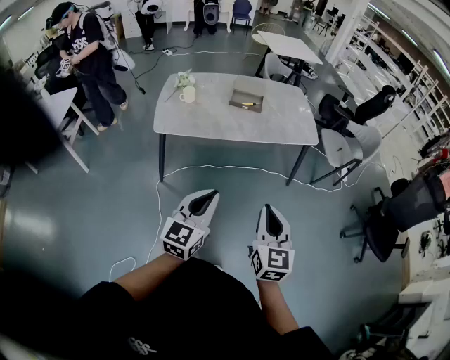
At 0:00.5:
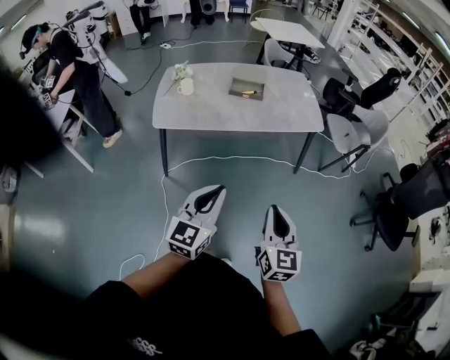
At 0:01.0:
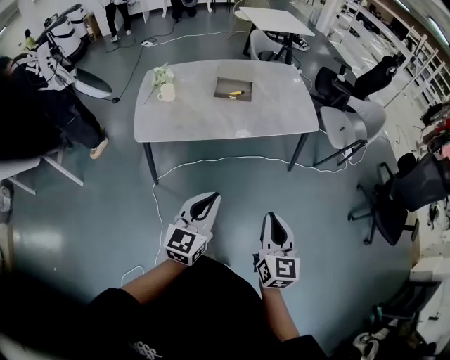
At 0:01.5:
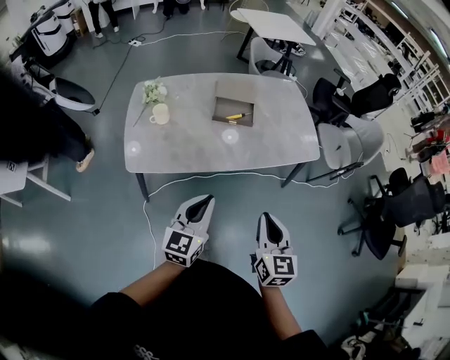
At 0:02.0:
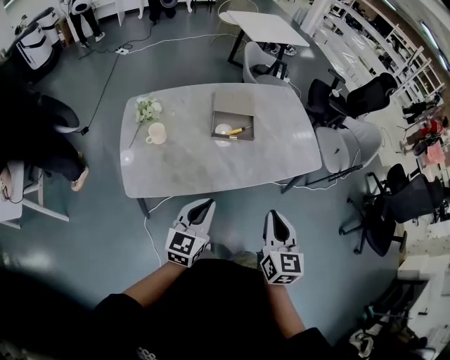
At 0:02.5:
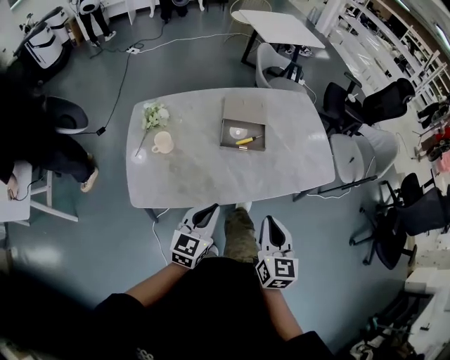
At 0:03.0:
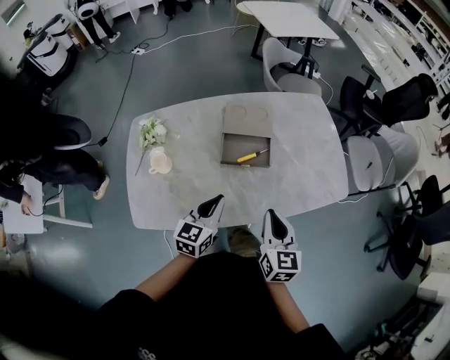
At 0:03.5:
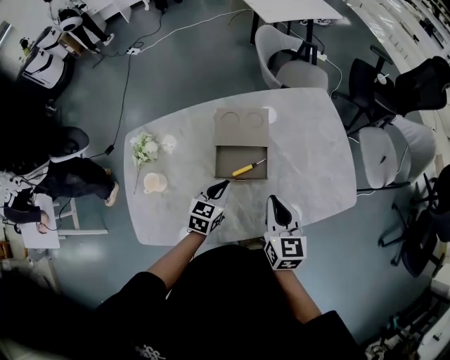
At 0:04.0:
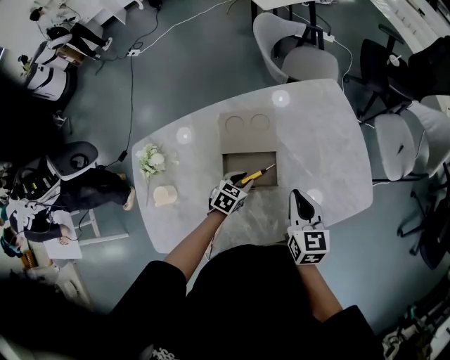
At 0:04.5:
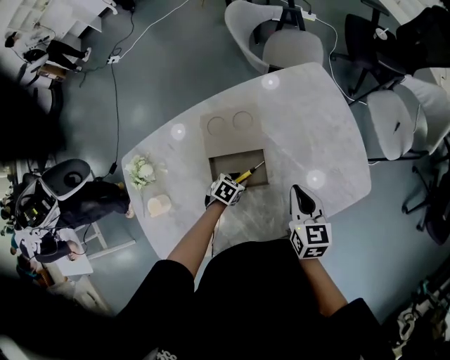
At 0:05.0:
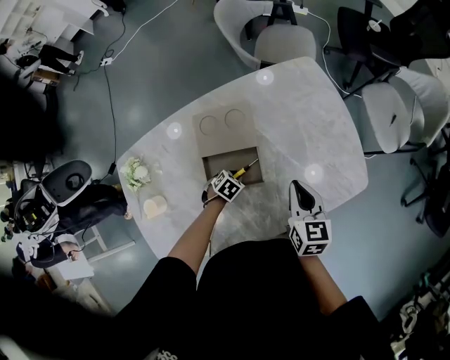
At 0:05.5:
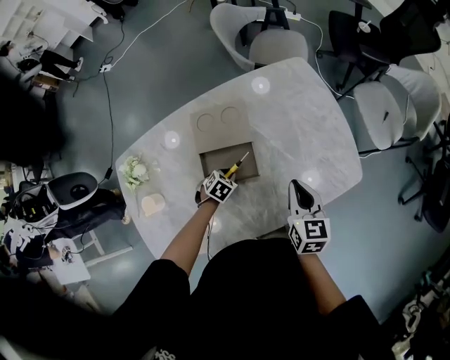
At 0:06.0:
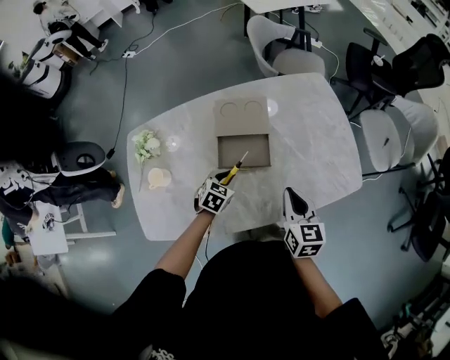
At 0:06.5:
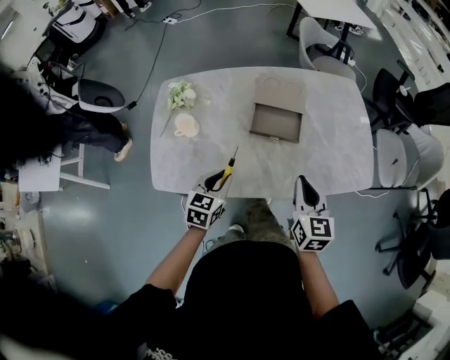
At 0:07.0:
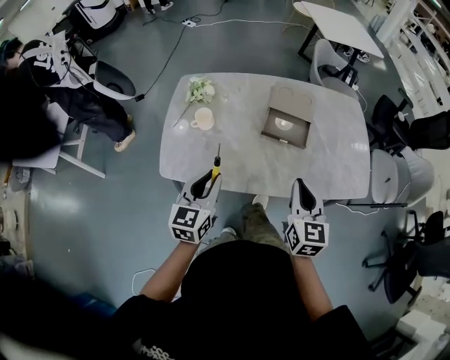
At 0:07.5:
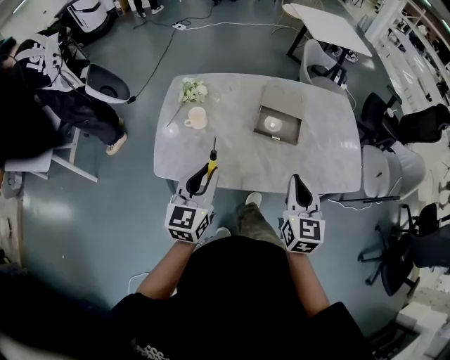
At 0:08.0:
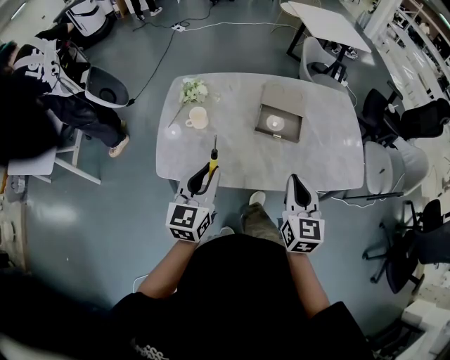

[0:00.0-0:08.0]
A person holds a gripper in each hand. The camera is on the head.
0:00.0 to 0:02.0: Both grippers are carried forward, about 40 cm.
0:02.0 to 0:04.0: The two grippers travel together, forward, roughly 50 cm. The left gripper goes roughly 25 cm downward, tips its fingers downward by approximately 40 degrees, and opens.
0:04.0 to 0:06.0: The left gripper goes downward and returns, roughly 10 cm each way. Meanwhile the right gripper moves about 10 cm.
0:06.0 to 0:08.0: The left gripper shifts some 40 cm backward, upward and to the left, and angles its fingers upward, by roughly 40 degrees, while the right gripper is displaced backward, to the left and upward by roughly 25 cm.

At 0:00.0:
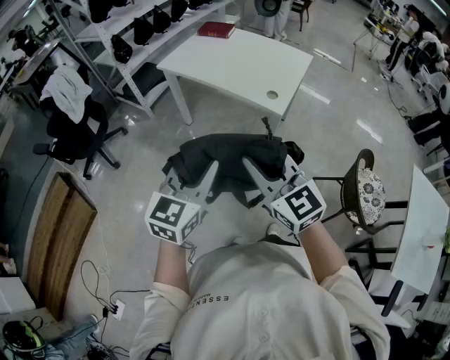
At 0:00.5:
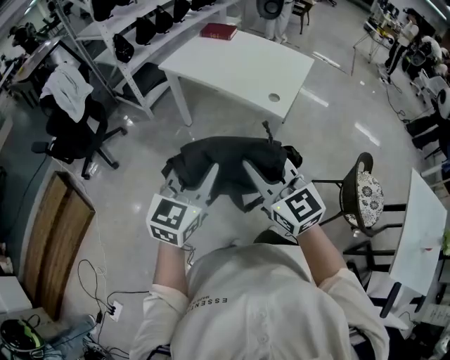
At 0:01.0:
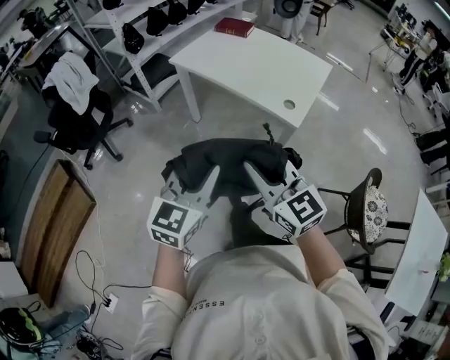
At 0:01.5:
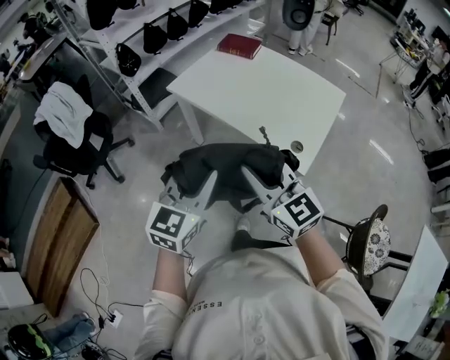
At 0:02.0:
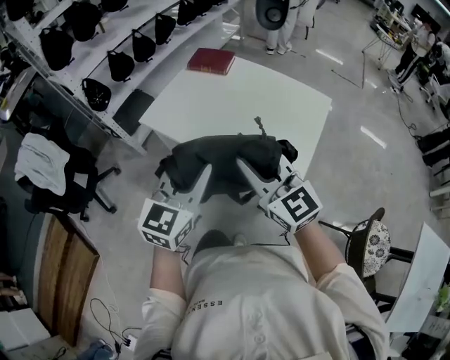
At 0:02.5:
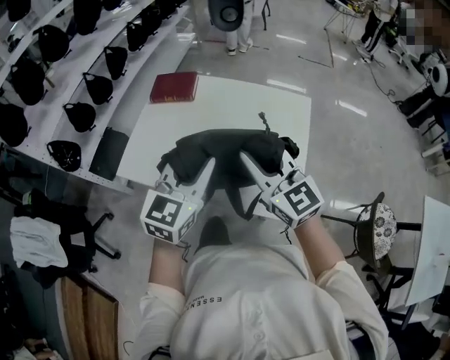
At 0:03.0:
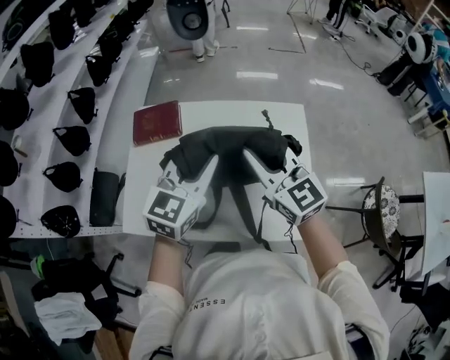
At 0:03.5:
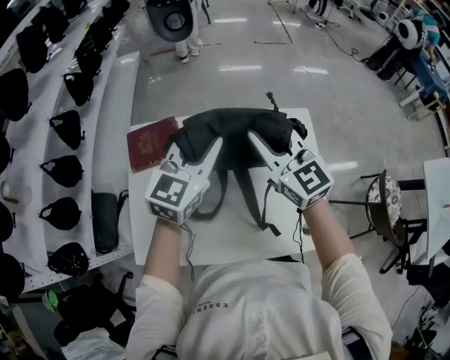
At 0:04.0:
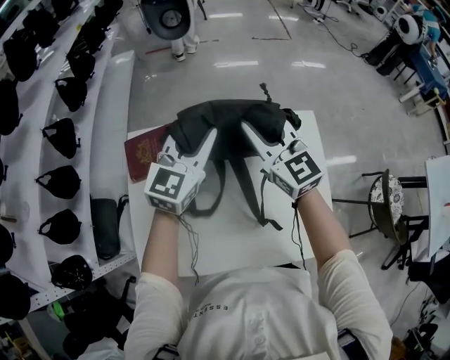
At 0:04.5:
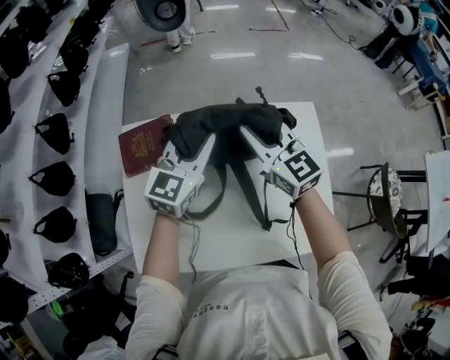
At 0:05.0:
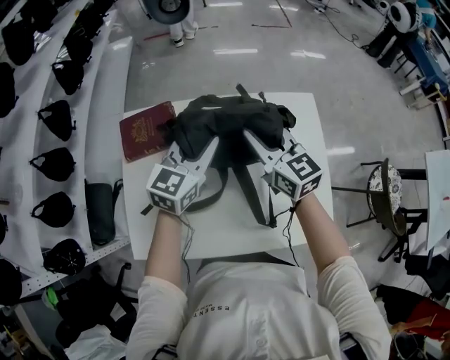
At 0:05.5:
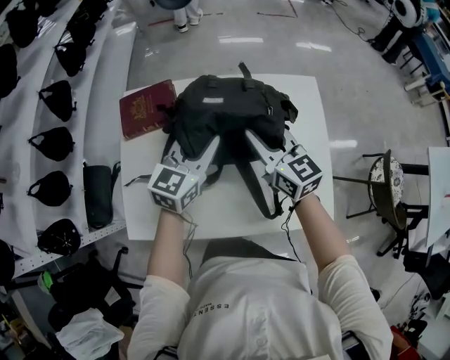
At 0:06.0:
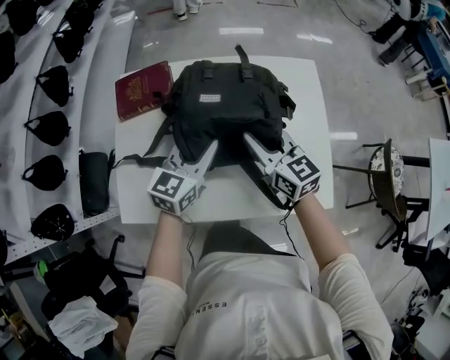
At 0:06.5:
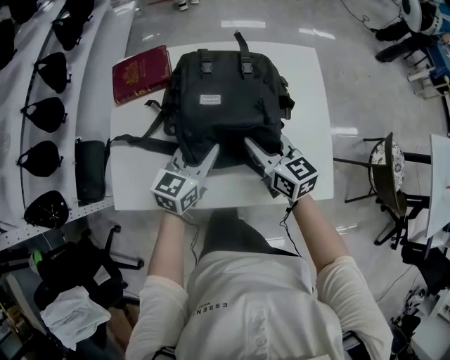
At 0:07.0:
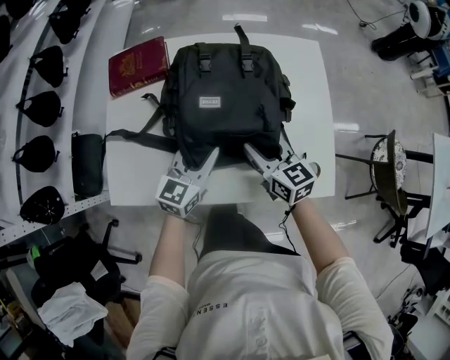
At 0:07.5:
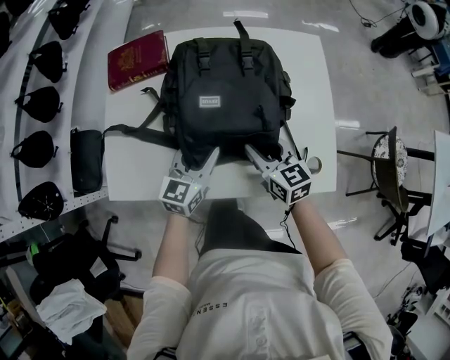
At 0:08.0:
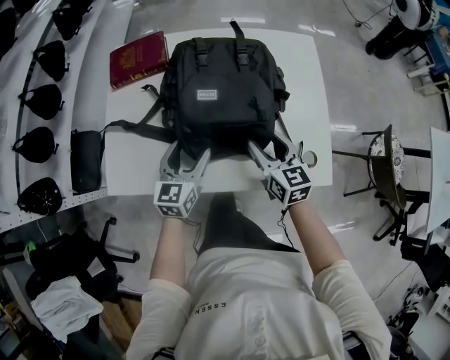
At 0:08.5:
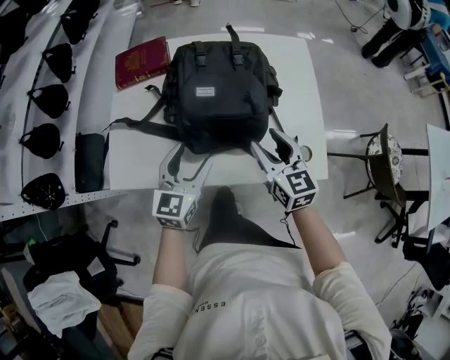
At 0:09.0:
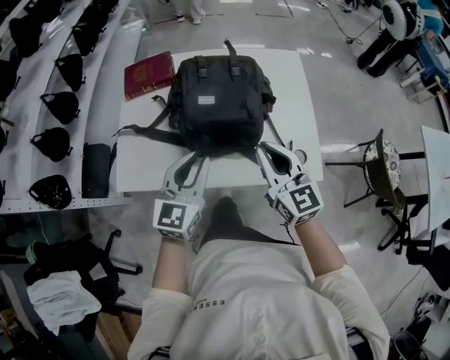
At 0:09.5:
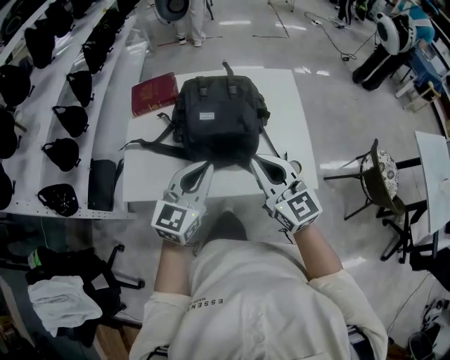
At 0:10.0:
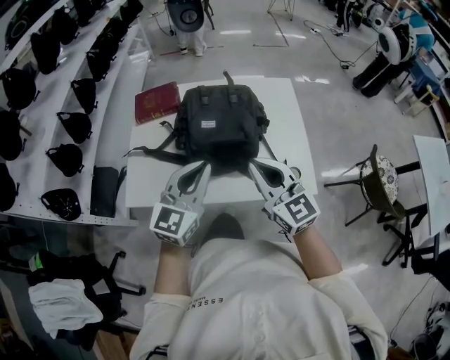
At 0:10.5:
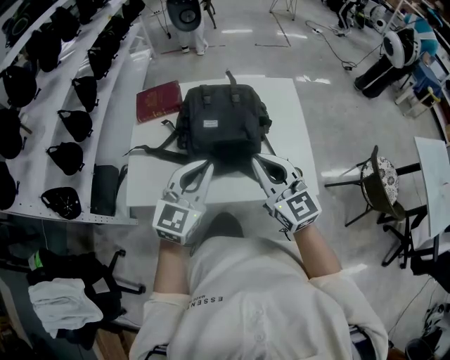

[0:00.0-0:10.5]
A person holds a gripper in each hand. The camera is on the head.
0:00.0 to 0:02.0: The pair of grippers is taken forward, roughly 40 cm.
0:02.0 to 0:04.0: Both grippers are carried some 50 cm. The left gripper swivels some 40 degrees; the right gripper rotates roughly 40 degrees.
0:04.0 to 0:06.5: Both grippers move backward and downward, about 30 cm. The right gripper turns by some 30 degrees. Meanwhile the left gripper turns by approximately 20 degrees.
0:06.5 to 0:08.5: The grippers both shift backward by some 10 cm. The left gripper opens up. Meanwhile the right gripper opens.
0:08.5 to 0:10.5: The left gripper goes about 15 cm upward, and closes up. The right gripper is displaced upward and backward by approximately 15 cm, rotates roughly 20 degrees, and closes up.

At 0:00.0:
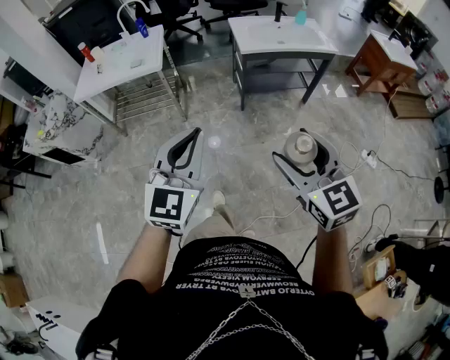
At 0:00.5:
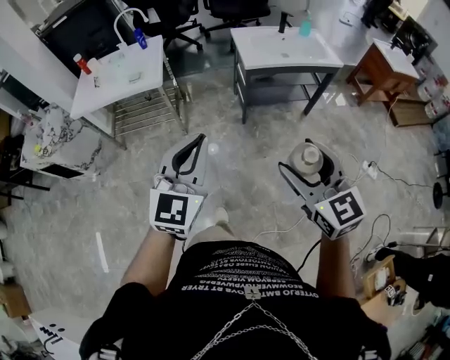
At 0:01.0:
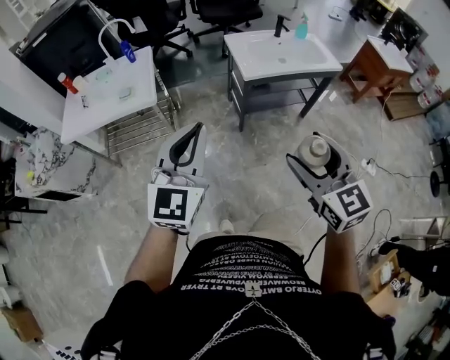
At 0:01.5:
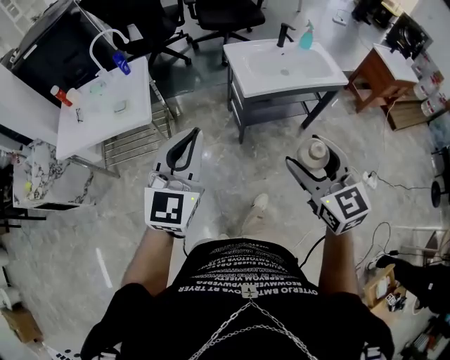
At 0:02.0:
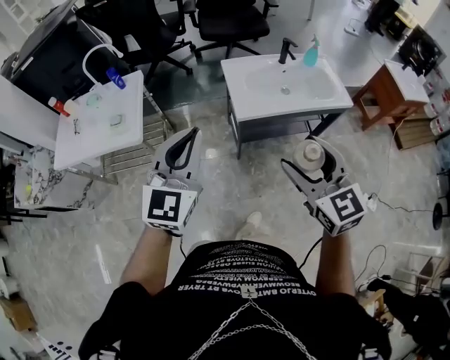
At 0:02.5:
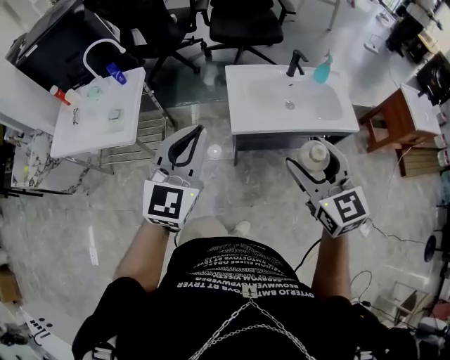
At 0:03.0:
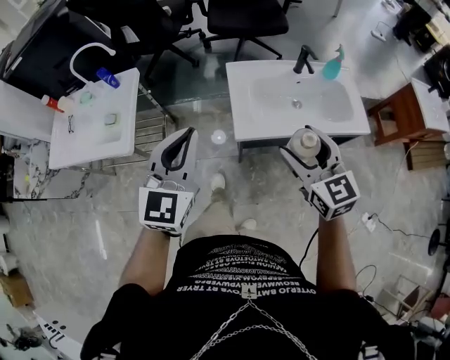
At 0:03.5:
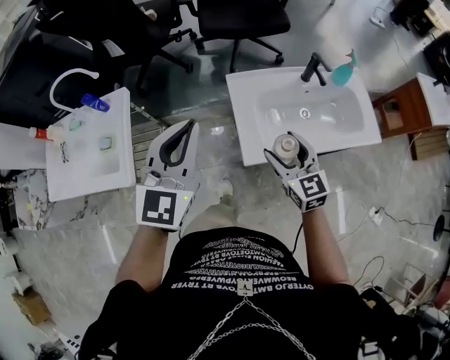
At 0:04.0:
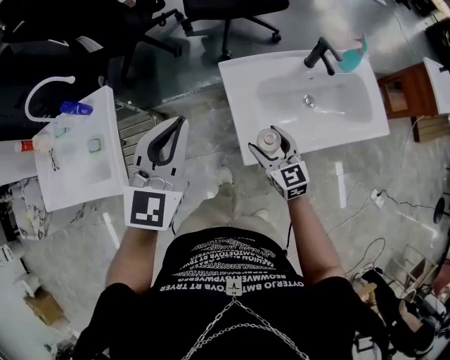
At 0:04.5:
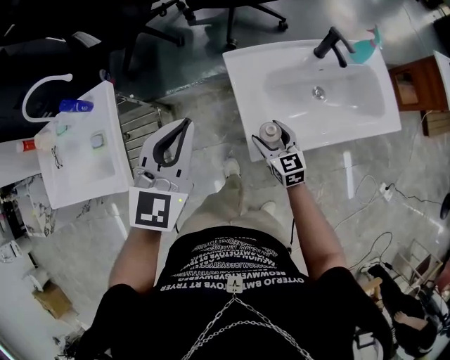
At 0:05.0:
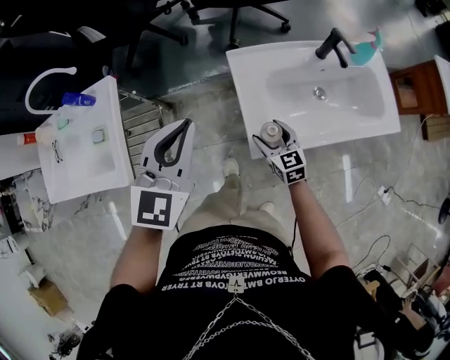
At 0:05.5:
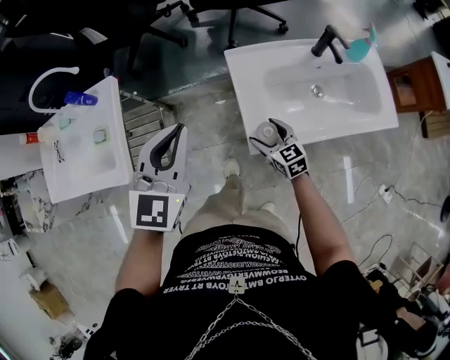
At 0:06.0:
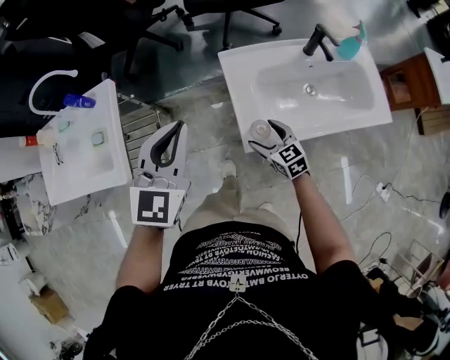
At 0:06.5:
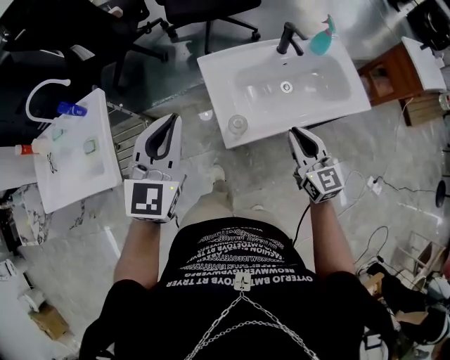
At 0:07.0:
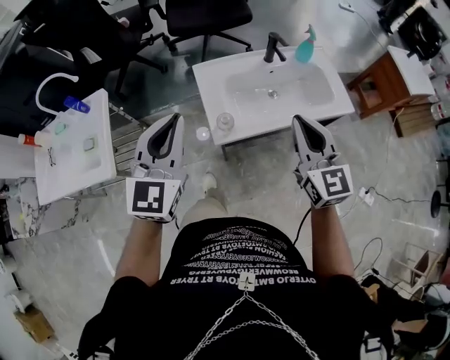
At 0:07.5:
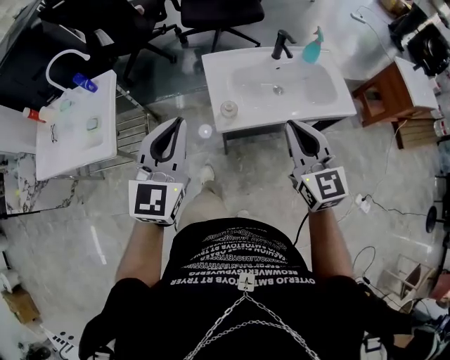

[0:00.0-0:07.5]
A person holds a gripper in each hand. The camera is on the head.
0:00.0 to 0:02.0: The two grippers travel together, forward, roughly 50 cm.
0:02.0 to 0:04.0: The pair of grippers is taken forward, about 40 cm. The right gripper heads downward, covering about 35 cm.
0:04.0 to 0:05.5: The right gripper heads downward, covering roughly 10 cm. Meanwhile the left gripper changes place by some 5 cm.
0:05.5 to 0:07.5: The right gripper is displaced upward, backward and to the right by about 40 cm, changes its angle by roughly 30 degrees, and closes up. The left gripper travels backward, upward and to the right by approximately 25 cm.
